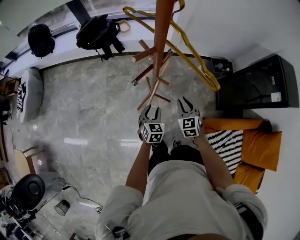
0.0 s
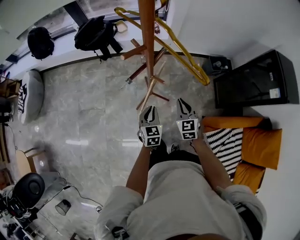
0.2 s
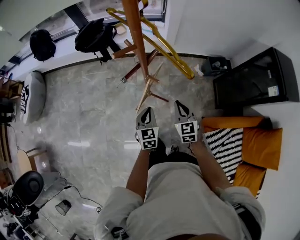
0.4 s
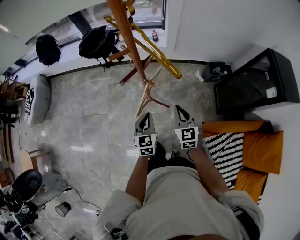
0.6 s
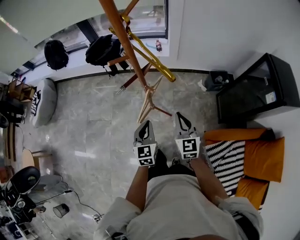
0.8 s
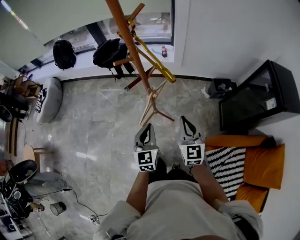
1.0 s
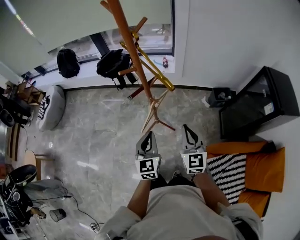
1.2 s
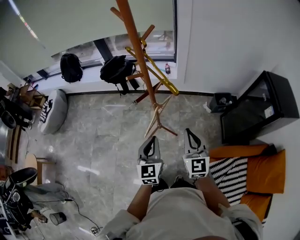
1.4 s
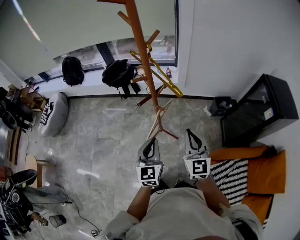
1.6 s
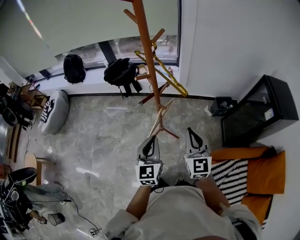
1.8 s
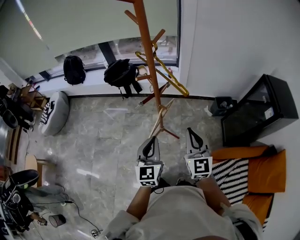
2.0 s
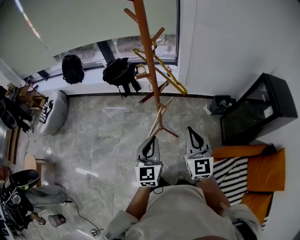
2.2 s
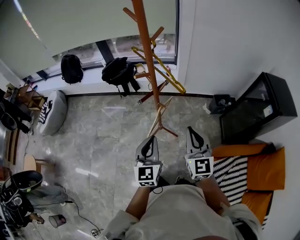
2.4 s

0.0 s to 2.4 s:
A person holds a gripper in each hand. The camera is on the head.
0.0 to 1.2 s: Both grippers travel together upward and backward, some 25 cm. The left gripper changes its angle by some 30 degrees, and closes, while the right gripper turns by about 30 degrees.
1.2 to 2.4 s: Both grippers travel together upward, some 10 cm.

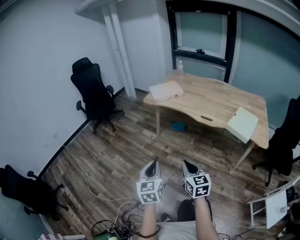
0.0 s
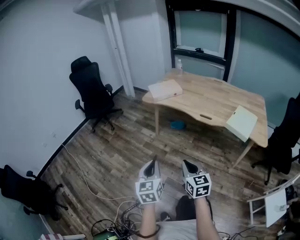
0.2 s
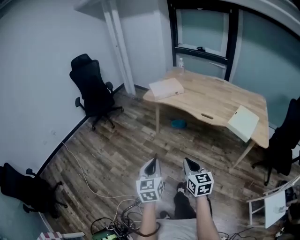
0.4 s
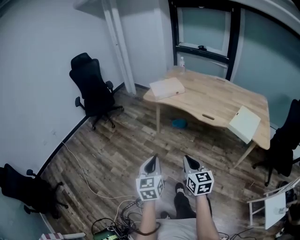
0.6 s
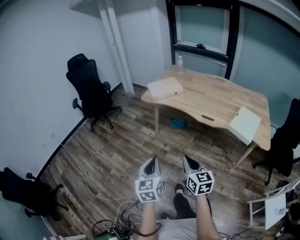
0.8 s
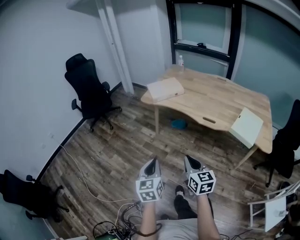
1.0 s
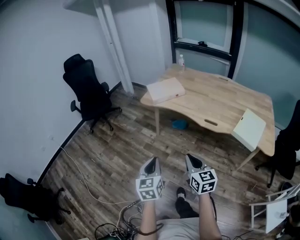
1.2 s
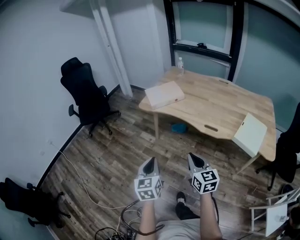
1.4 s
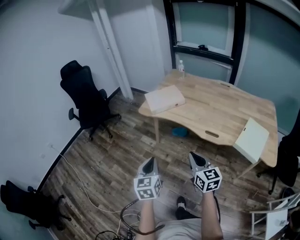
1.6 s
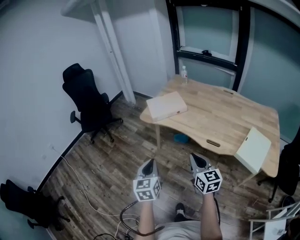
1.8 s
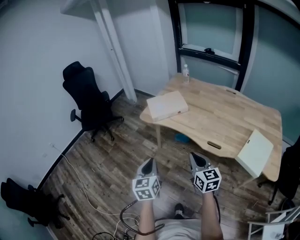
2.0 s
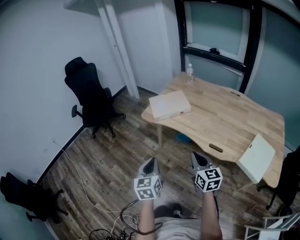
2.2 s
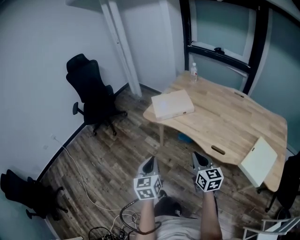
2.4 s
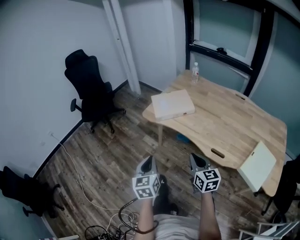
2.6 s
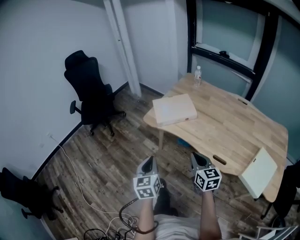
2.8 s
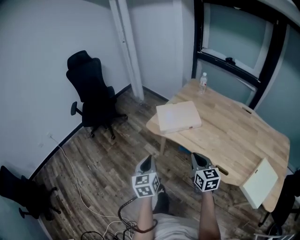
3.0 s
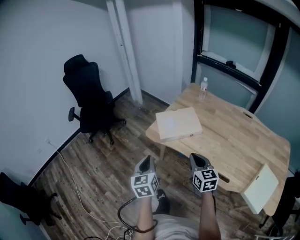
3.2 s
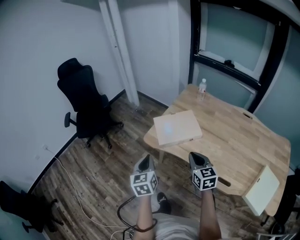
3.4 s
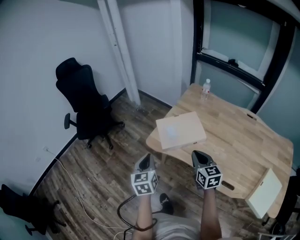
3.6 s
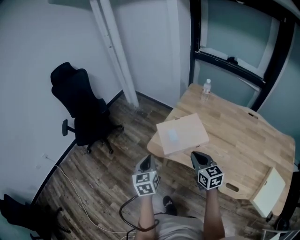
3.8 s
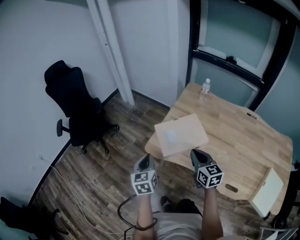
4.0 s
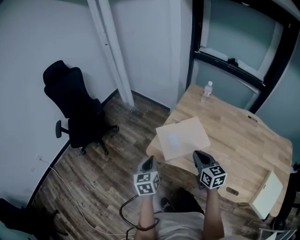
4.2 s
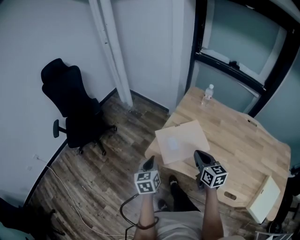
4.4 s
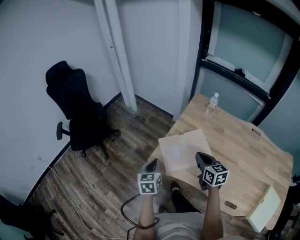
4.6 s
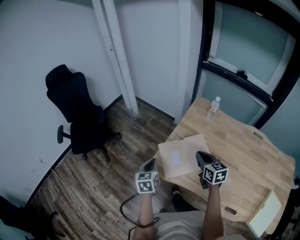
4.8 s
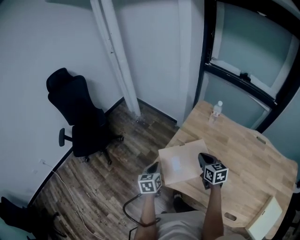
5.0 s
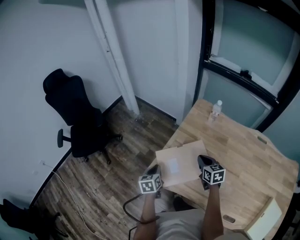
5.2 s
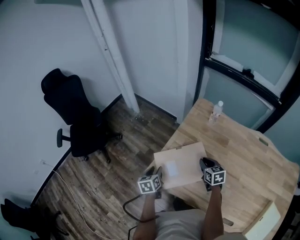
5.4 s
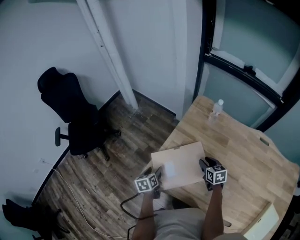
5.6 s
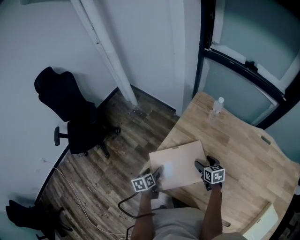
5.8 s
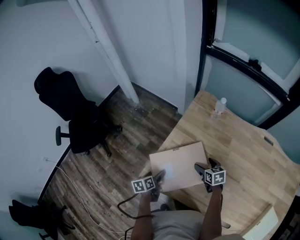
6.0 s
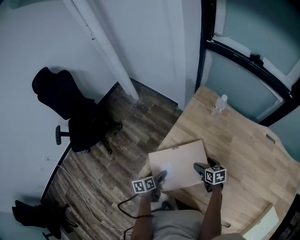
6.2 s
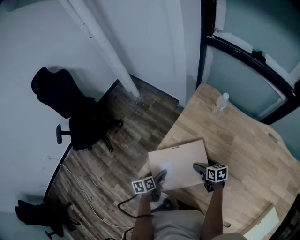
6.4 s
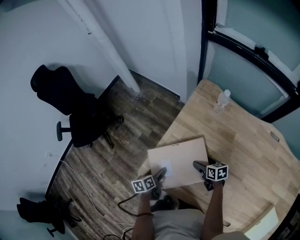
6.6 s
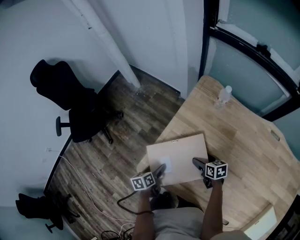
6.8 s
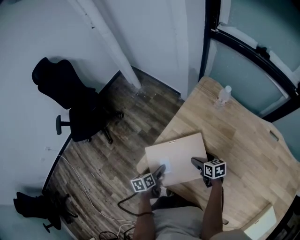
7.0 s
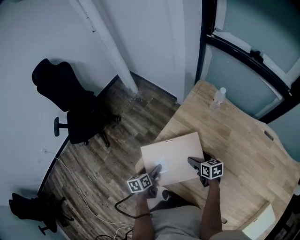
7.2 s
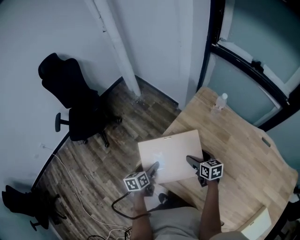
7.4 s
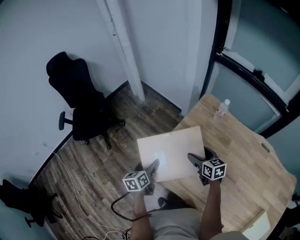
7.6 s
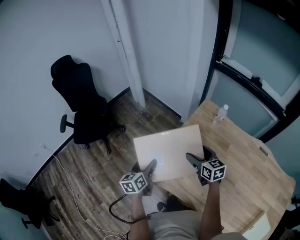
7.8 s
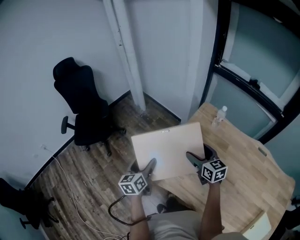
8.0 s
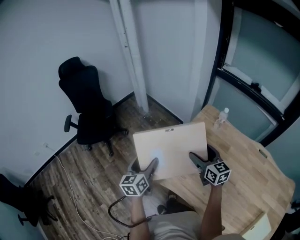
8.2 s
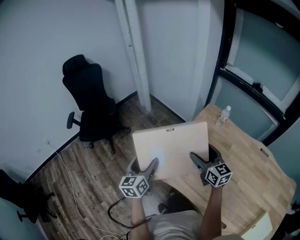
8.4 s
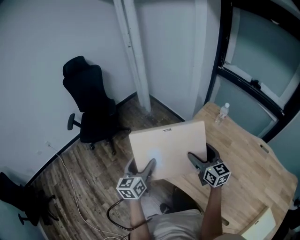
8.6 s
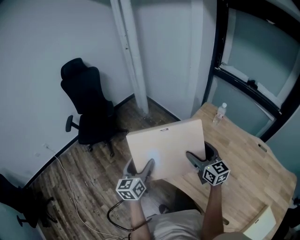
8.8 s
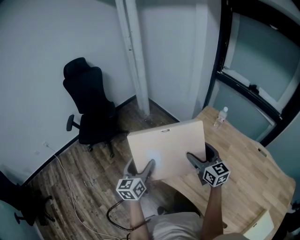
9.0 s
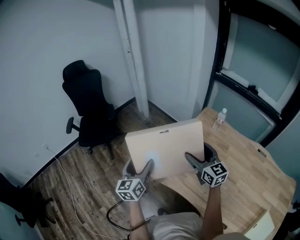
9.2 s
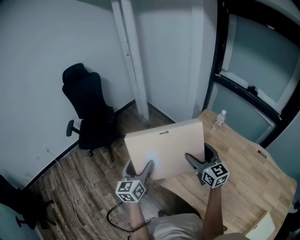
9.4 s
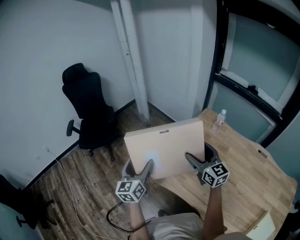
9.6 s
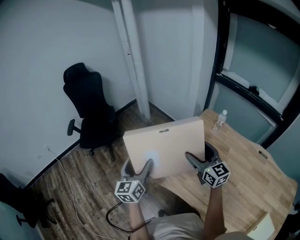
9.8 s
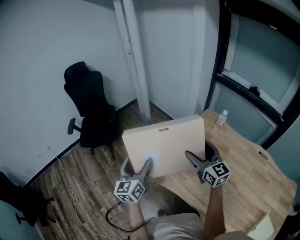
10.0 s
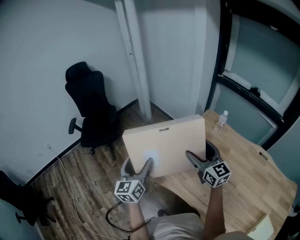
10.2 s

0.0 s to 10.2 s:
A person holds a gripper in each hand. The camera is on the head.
0.0 to 1.4 s: Both grippers travel together forward, some 20 cm.
1.4 to 3.0 s: Both grippers move forward, some 30 cm.
3.0 to 4.4 s: Both grippers move forward, approximately 30 cm.
4.4 to 5.8 s: The left gripper goes about 20 cm downward and forward, swivels approximately 30 degrees, and opens its fingers, while the right gripper goes some 30 cm downward, forward and to the right, swivels about 20 degrees, and opens.
5.8 to 7.2 s: There are only small adjustments of the grippers.
7.2 to 8.8 s: Both grippers move upward and to the left, approximately 30 cm. The right gripper tilts its fingers about 30 degrees upward. Meanwhile the left gripper tilts its fingers roughly 30 degrees upward.
8.8 to 10.2 s: The left gripper shifts some 5 cm upward; the right gripper ends up roughly 5 cm from where it was.

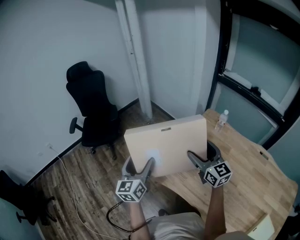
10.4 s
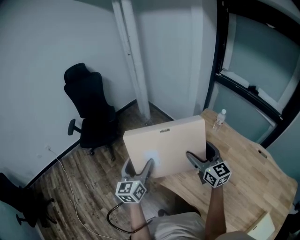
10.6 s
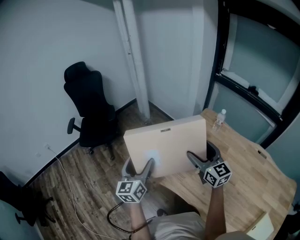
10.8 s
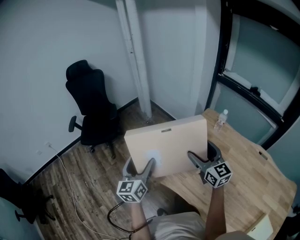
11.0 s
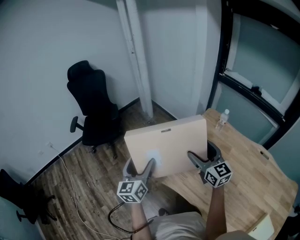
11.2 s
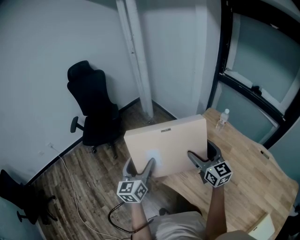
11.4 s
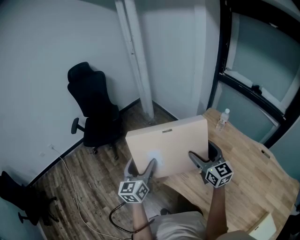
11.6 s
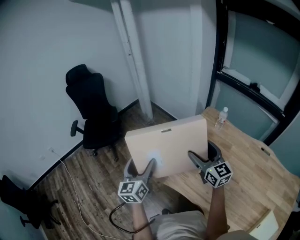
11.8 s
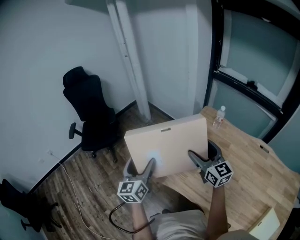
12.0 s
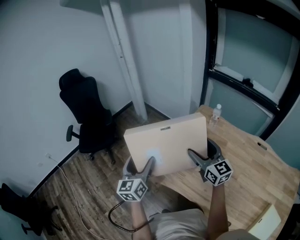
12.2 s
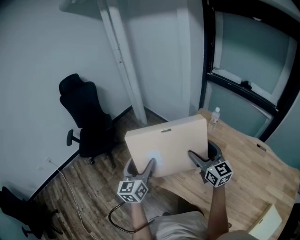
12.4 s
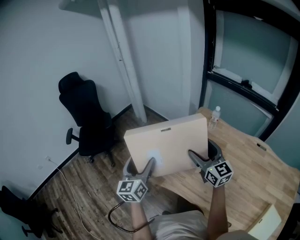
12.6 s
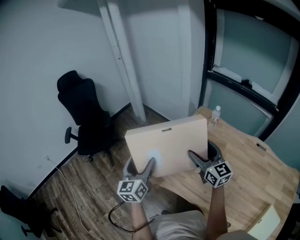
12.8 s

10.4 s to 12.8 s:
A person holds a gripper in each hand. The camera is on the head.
10.4 to 11.6 s: Neither gripper changes place.
11.6 to 12.8 s: There are only small adjustments of the grippers.

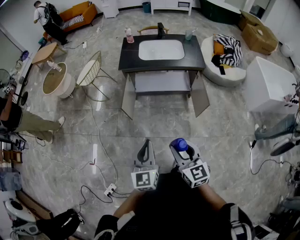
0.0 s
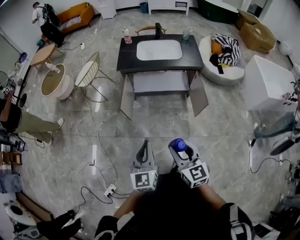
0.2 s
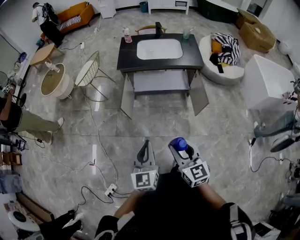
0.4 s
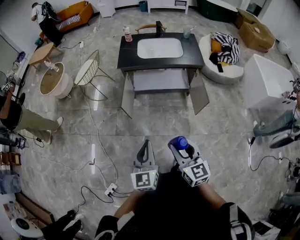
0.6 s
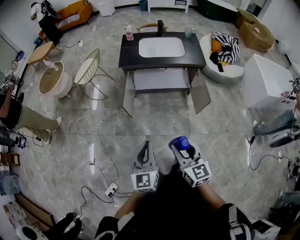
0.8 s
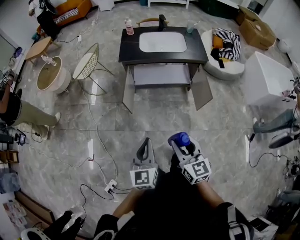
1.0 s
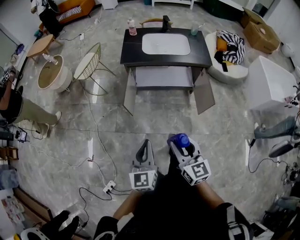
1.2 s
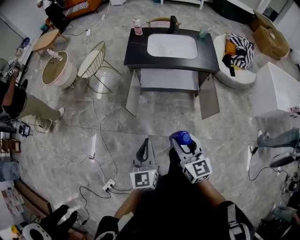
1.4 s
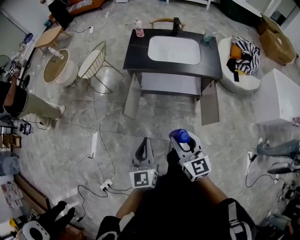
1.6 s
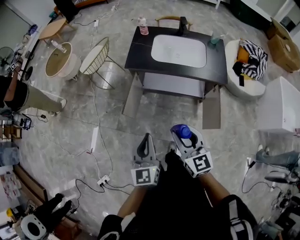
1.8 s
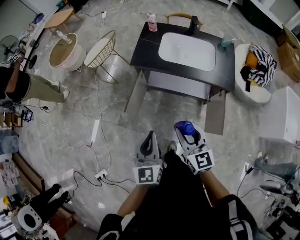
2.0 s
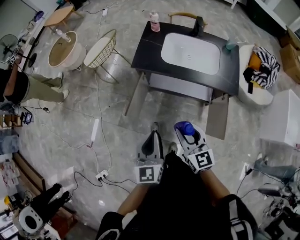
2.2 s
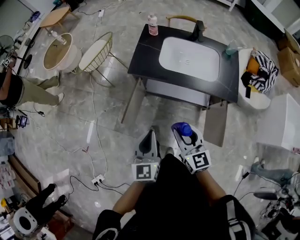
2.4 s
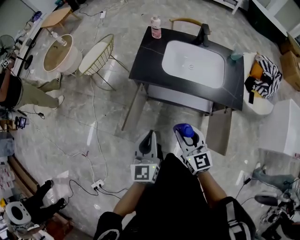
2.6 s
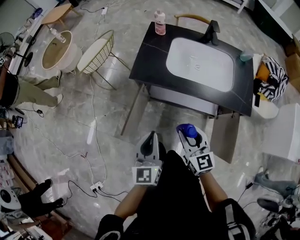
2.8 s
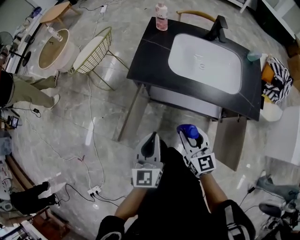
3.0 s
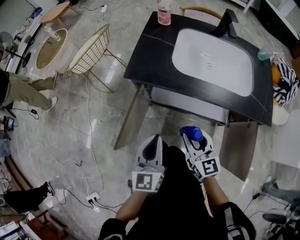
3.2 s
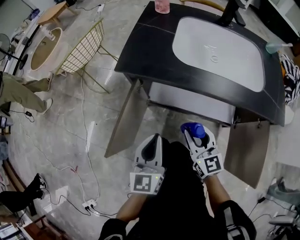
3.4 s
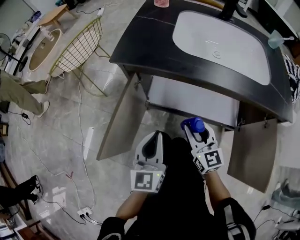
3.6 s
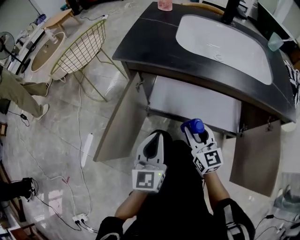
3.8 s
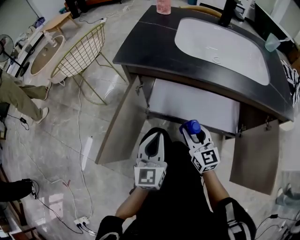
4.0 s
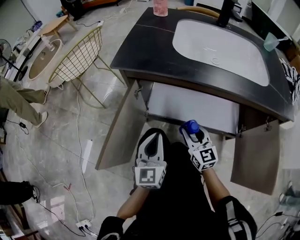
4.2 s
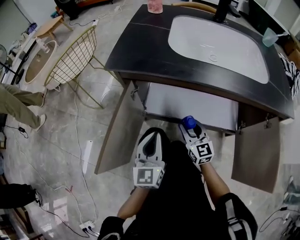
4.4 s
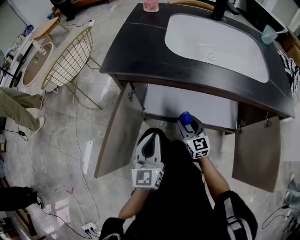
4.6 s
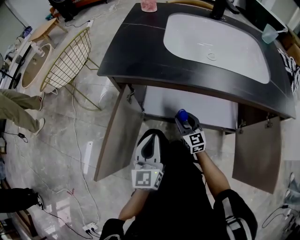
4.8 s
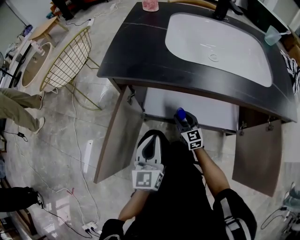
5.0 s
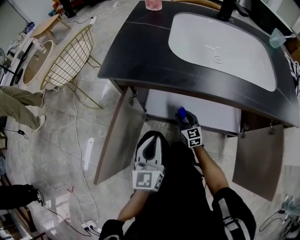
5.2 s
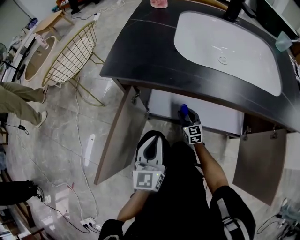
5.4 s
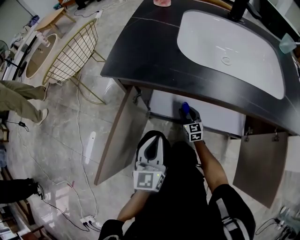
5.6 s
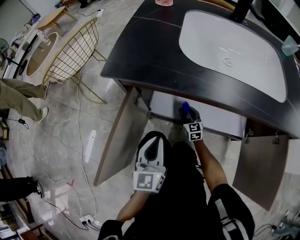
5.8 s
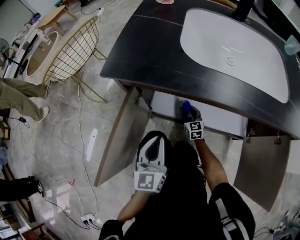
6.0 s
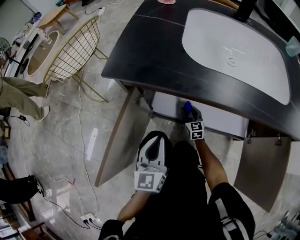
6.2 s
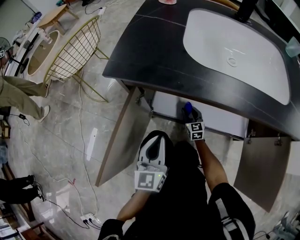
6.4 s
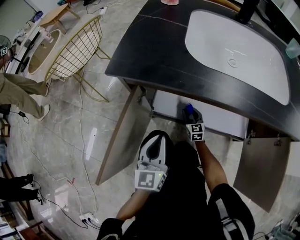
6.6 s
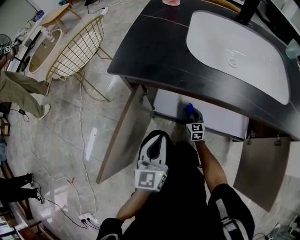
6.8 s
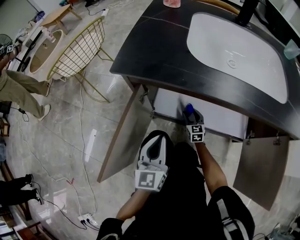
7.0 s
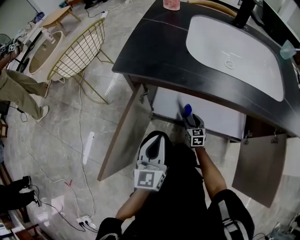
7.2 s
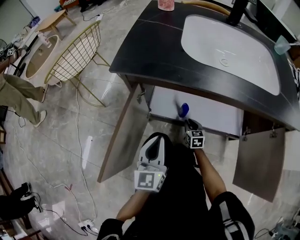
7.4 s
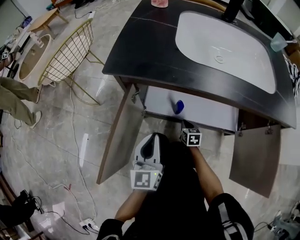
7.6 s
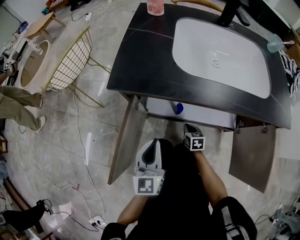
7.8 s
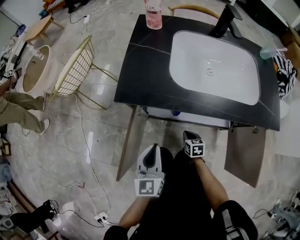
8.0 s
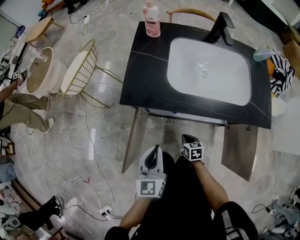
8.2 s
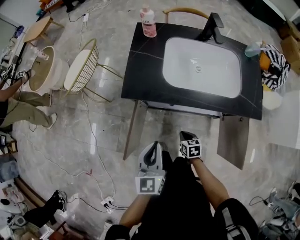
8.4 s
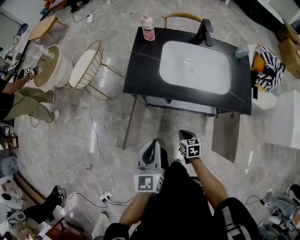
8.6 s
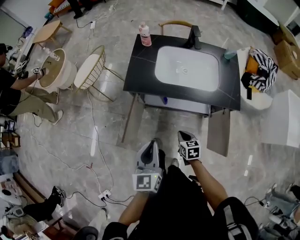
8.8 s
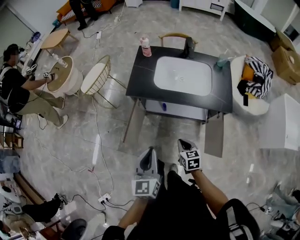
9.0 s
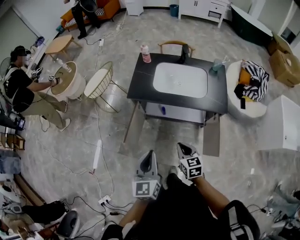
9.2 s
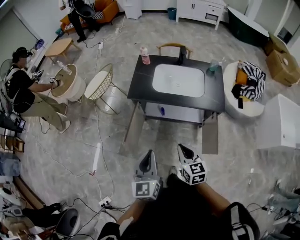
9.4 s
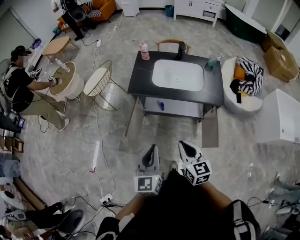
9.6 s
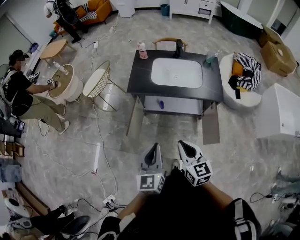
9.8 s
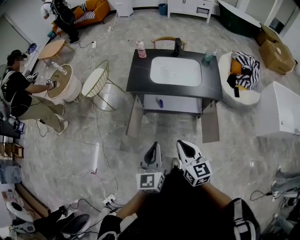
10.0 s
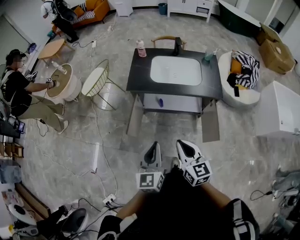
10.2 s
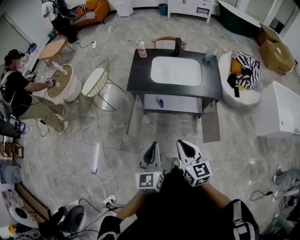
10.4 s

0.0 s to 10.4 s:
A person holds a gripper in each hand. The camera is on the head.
0.0 to 1.4 s: Both grippers move forward, approximately 10 cm.
1.4 to 3.0 s: The two grippers go some 40 cm forward and downward.
3.0 to 4.4 s: Both grippers move downward, about 30 cm.
4.4 to 6.0 s: The right gripper moves downward and forward, some 25 cm.
6.0 to 7.4 s: The right gripper travels backward by some 10 cm.
7.4 to 9.0 s: Both grippers move upward and backward, roughly 60 cm.
9.0 to 10.4 s: The left gripper moves backward and upward, roughly 10 cm; the right gripper shifts about 25 cm upward and backward, and rotates about 30 degrees.
